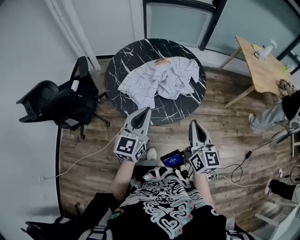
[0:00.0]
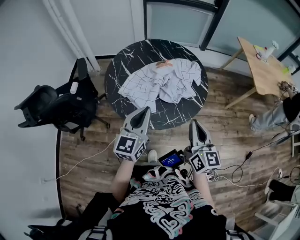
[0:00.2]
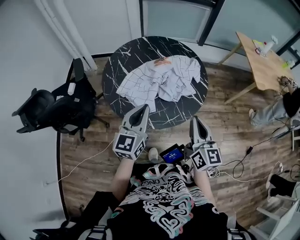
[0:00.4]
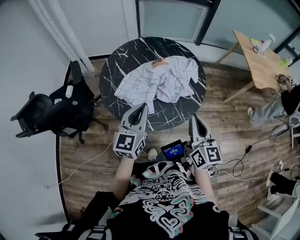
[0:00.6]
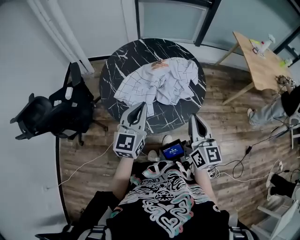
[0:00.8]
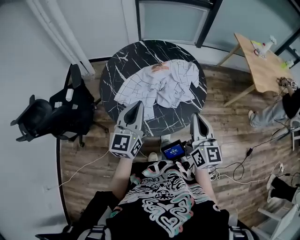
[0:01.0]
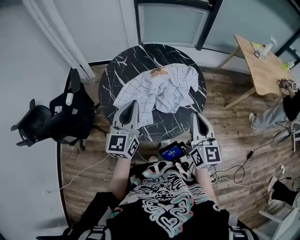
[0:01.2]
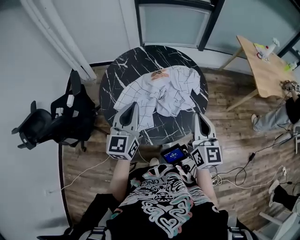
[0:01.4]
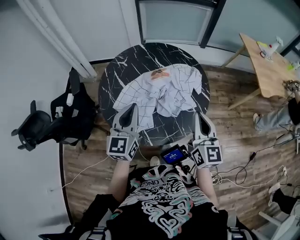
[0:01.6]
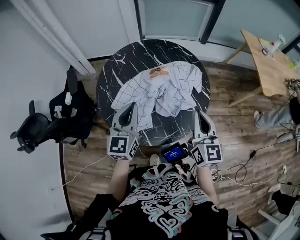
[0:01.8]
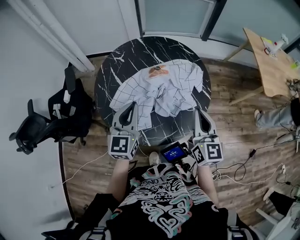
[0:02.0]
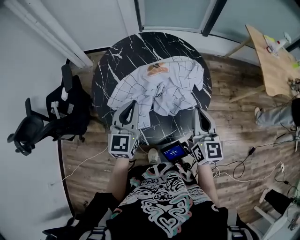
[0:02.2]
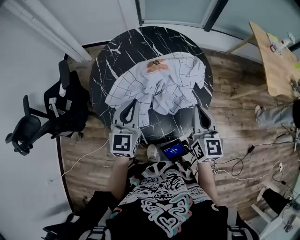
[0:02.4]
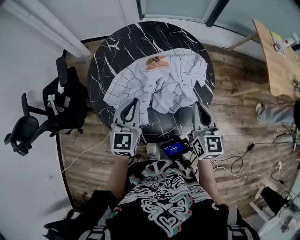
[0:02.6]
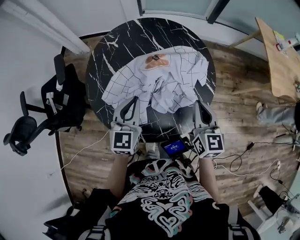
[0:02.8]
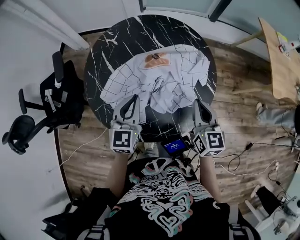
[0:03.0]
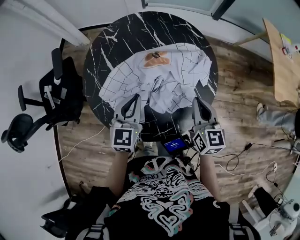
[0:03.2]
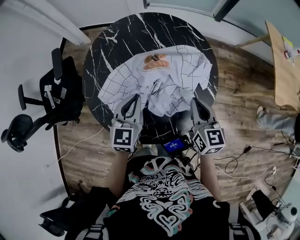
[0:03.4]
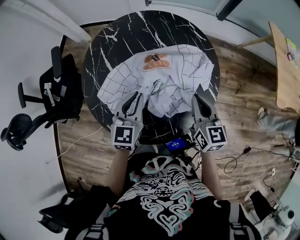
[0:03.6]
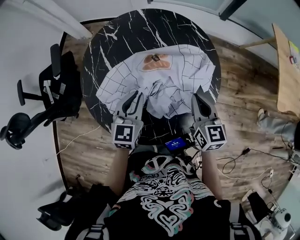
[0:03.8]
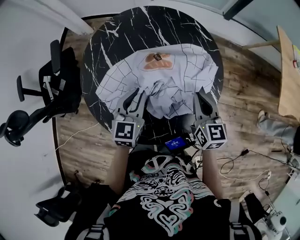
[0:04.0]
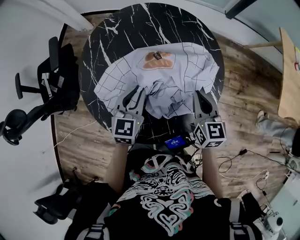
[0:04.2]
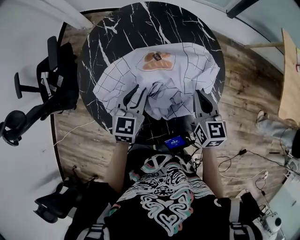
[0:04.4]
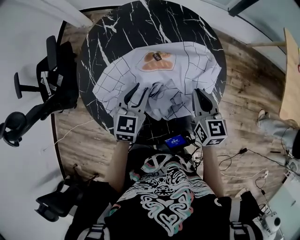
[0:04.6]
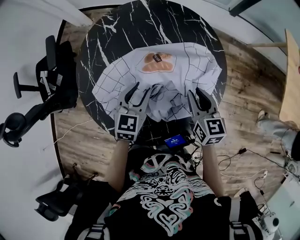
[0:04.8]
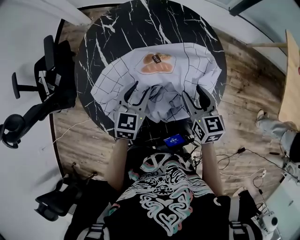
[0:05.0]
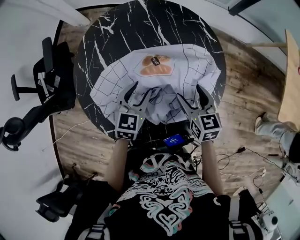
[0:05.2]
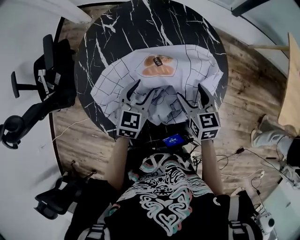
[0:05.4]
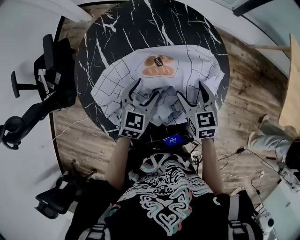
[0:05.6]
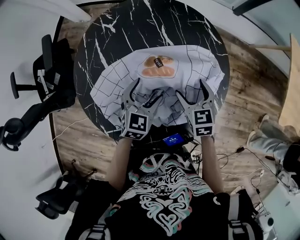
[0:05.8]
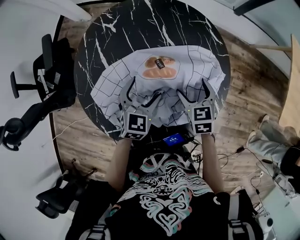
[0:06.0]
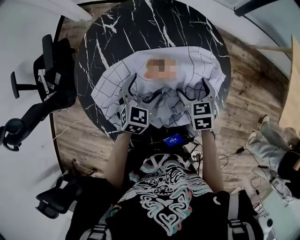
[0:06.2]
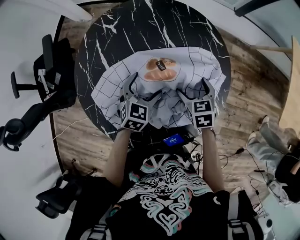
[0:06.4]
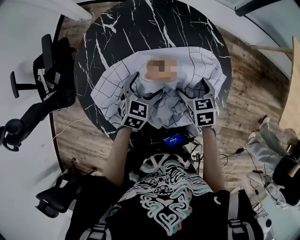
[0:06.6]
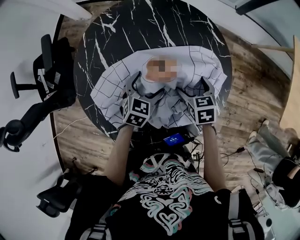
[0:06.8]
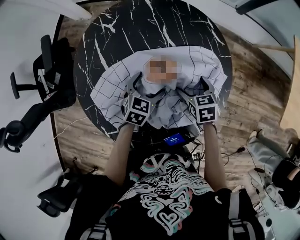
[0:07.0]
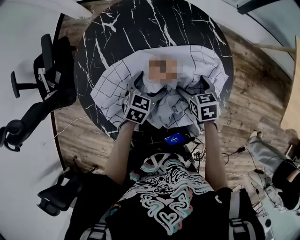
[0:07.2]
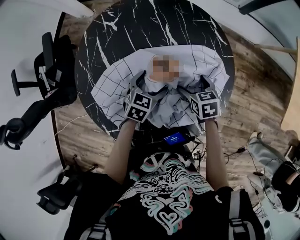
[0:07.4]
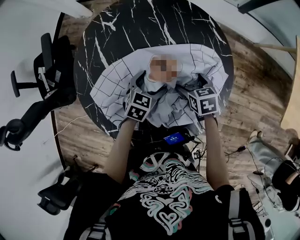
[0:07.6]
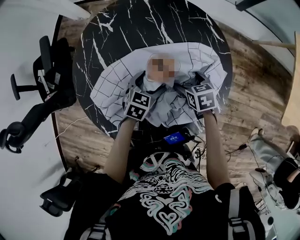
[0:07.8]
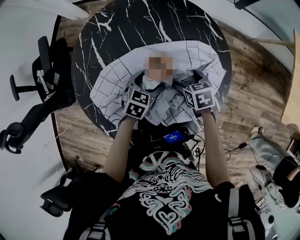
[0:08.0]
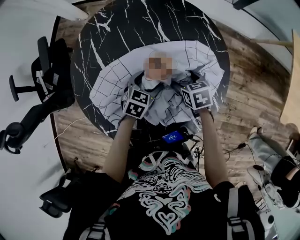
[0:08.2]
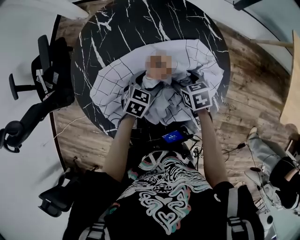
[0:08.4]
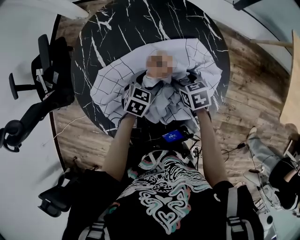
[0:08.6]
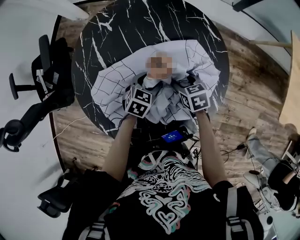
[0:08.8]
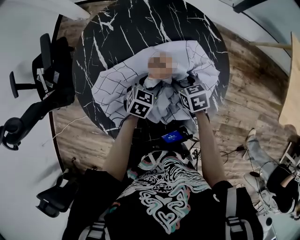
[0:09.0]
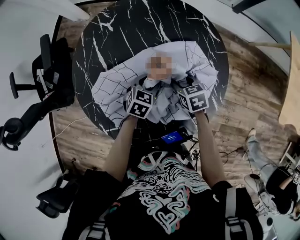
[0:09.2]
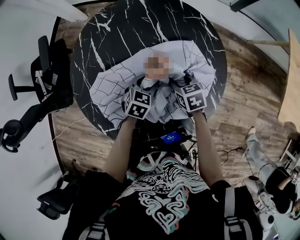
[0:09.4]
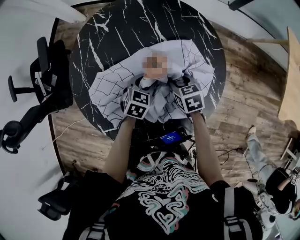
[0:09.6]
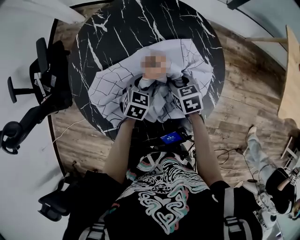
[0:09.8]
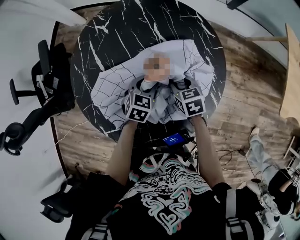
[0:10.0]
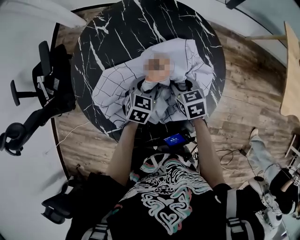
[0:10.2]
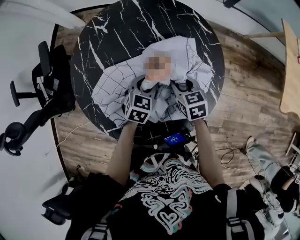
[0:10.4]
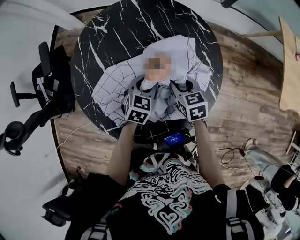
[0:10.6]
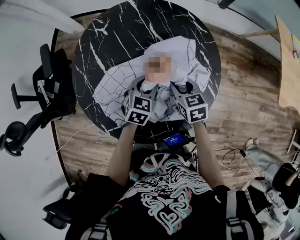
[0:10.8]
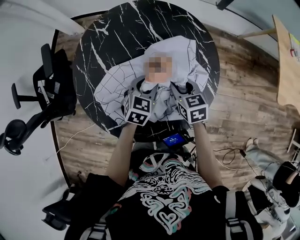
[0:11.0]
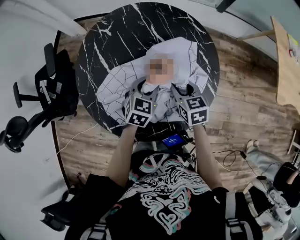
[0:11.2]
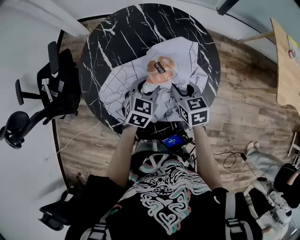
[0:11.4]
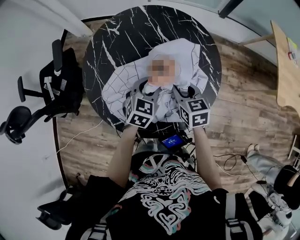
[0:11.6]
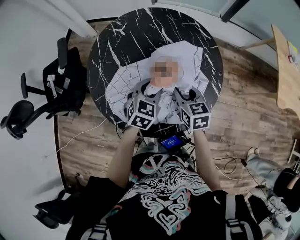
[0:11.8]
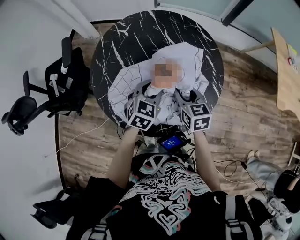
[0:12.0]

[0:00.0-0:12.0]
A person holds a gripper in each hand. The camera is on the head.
0:00.0 to 0:01.6: Both grippers move forward, roughly 15 cm.
0:01.6 to 0:03.0: The right gripper is displaced forward and downward by roughly 15 cm. The left gripper is displaced downward and forward by about 15 cm.
0:03.0 to 0:04.4: The right gripper moves forward and downward, approximately 10 cm, while the left gripper moves downward and forward, roughly 10 cm.
0:04.4 to 0:06.0: The left gripper shifts by roughly 5 cm, and opens up. Meanwhile the right gripper moves downward and forward, about 10 cm, swivels roughly 20 degrees, and opens.
0:06.0 to 0:07.6: The grippers both shift downward by approximately 10 cm. The right gripper turns by about 20 degrees.
0:07.6 to 0:09.0: The right gripper closes up, while the left gripper closes up.
0:09.0 to 0:10.4: The right gripper moves roughly 5 cm.
0:10.4 to 0:12.0: The two grippers go about 15 cm upward and backward.

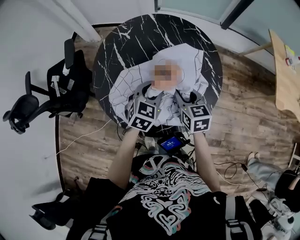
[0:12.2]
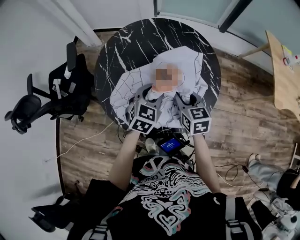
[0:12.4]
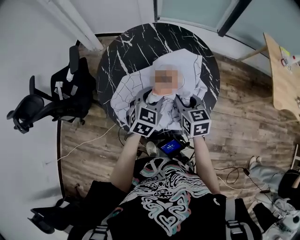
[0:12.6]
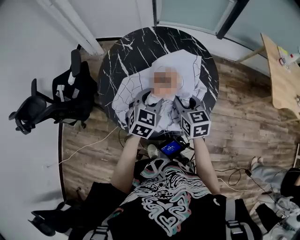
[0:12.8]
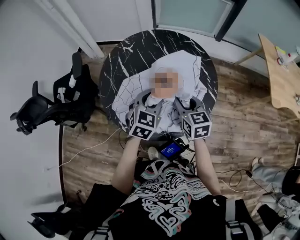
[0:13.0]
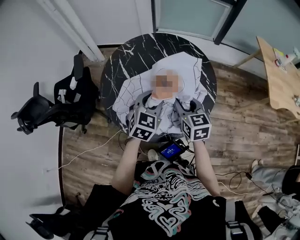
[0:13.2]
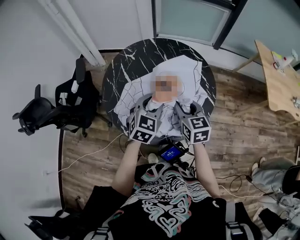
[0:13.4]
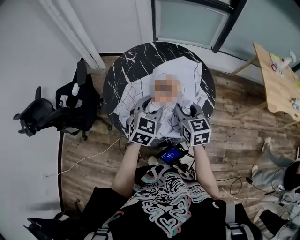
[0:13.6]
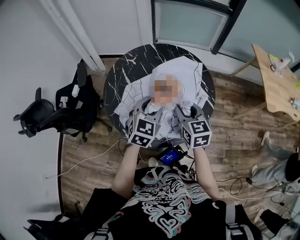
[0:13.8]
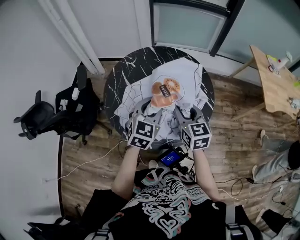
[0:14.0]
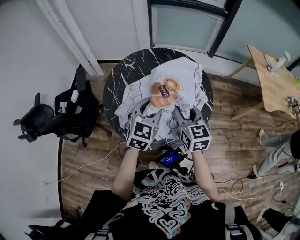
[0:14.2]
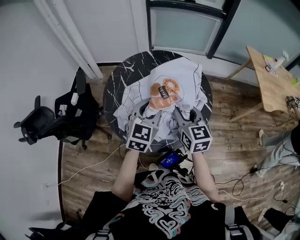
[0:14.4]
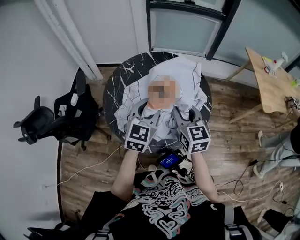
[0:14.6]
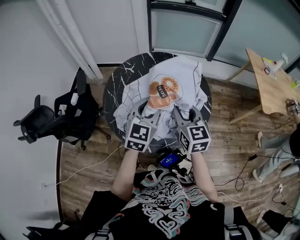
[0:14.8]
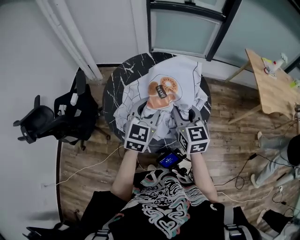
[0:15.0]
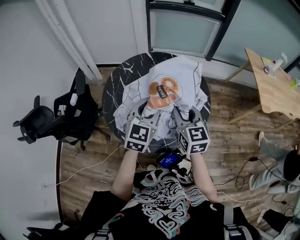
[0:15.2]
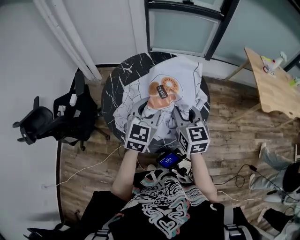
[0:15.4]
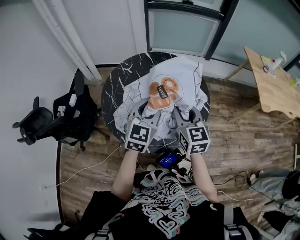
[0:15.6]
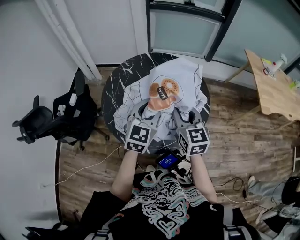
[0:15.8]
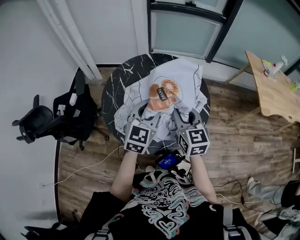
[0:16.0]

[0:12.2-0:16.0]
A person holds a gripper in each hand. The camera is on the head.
0:12.2 to 0:13.4: The two grippers go approximately 10 cm upward.
0:13.4 to 0:14.8: Both grippers move upward, about 10 cm.
0:14.8 to 0:16.0: Both grippers stay about where they are.

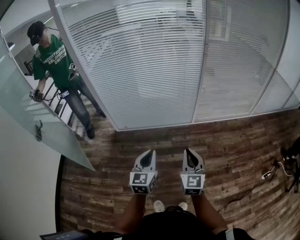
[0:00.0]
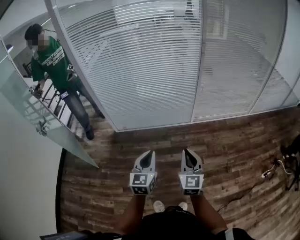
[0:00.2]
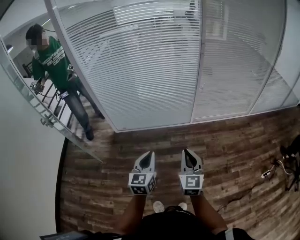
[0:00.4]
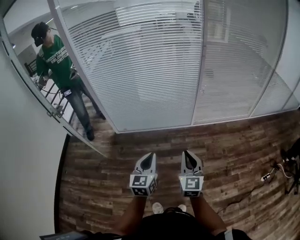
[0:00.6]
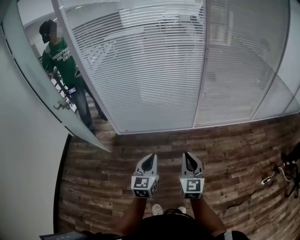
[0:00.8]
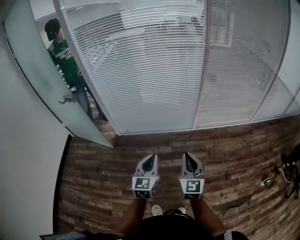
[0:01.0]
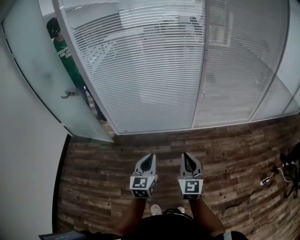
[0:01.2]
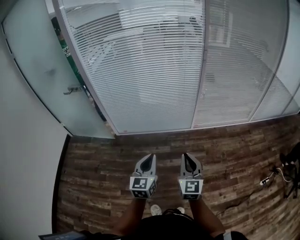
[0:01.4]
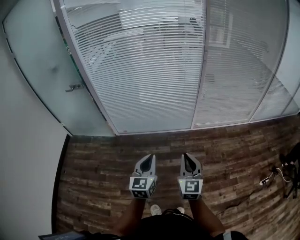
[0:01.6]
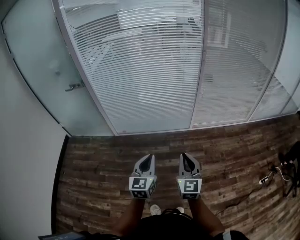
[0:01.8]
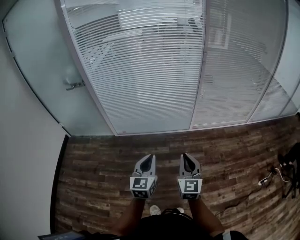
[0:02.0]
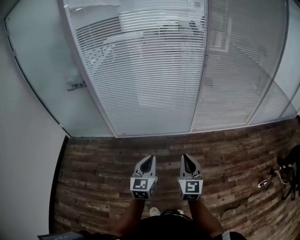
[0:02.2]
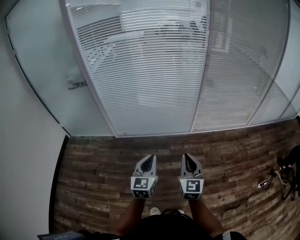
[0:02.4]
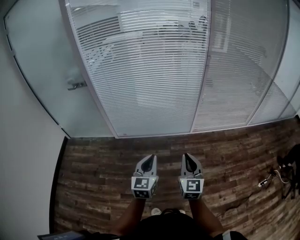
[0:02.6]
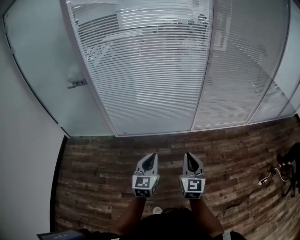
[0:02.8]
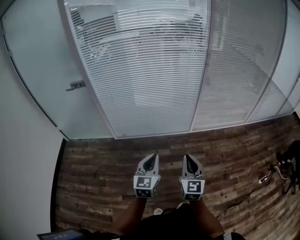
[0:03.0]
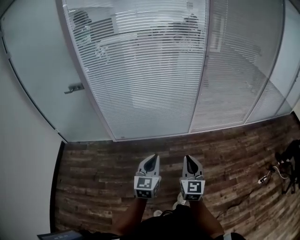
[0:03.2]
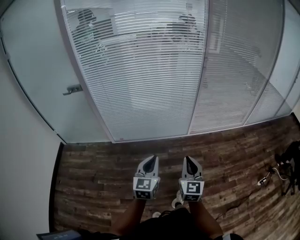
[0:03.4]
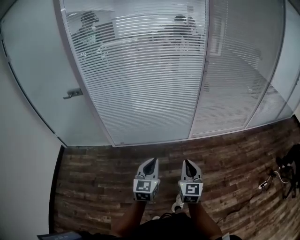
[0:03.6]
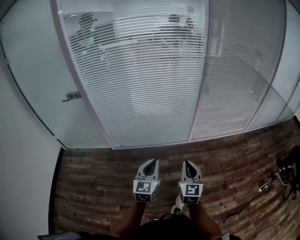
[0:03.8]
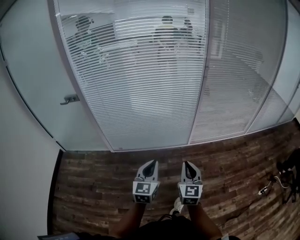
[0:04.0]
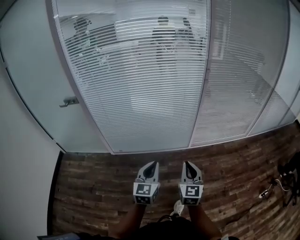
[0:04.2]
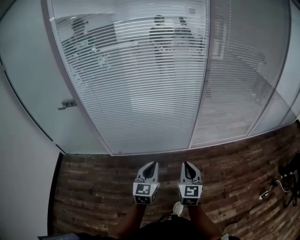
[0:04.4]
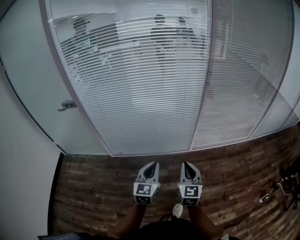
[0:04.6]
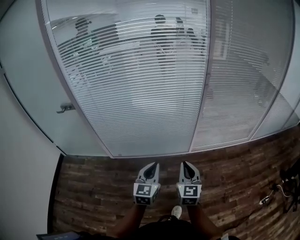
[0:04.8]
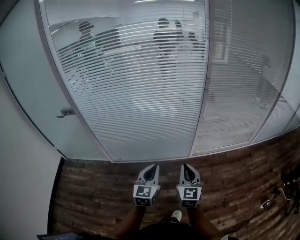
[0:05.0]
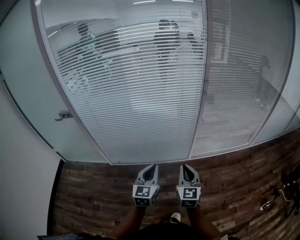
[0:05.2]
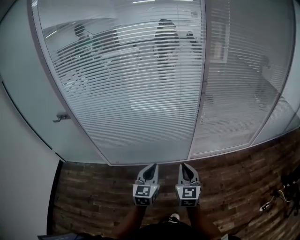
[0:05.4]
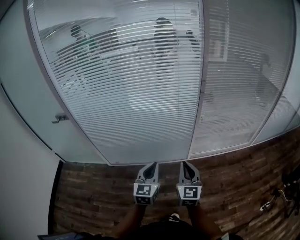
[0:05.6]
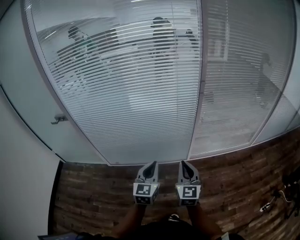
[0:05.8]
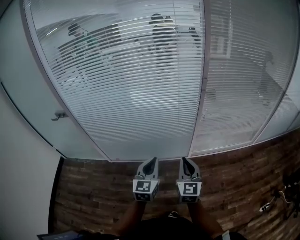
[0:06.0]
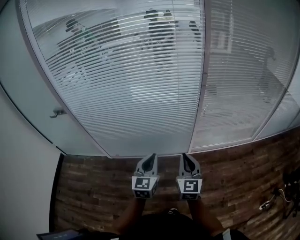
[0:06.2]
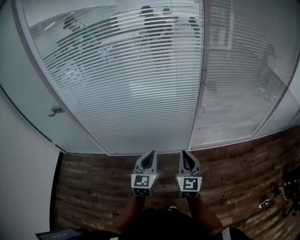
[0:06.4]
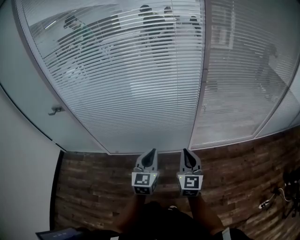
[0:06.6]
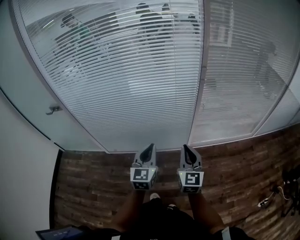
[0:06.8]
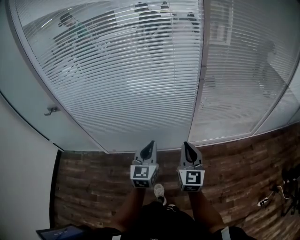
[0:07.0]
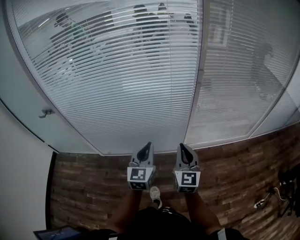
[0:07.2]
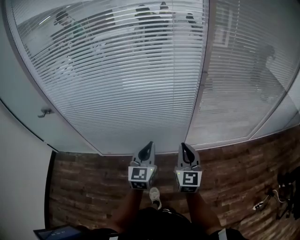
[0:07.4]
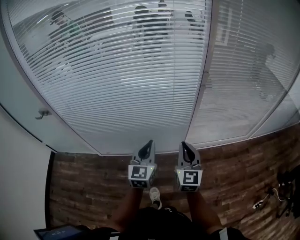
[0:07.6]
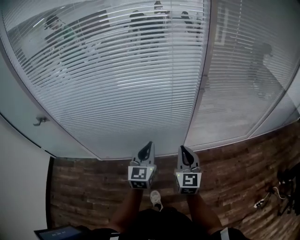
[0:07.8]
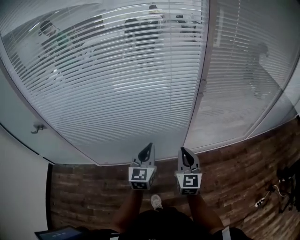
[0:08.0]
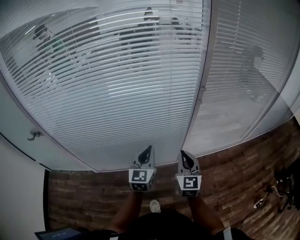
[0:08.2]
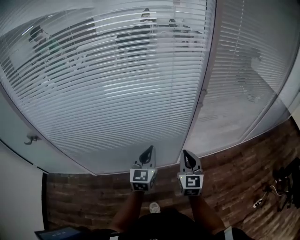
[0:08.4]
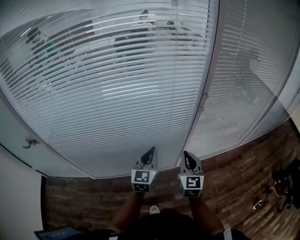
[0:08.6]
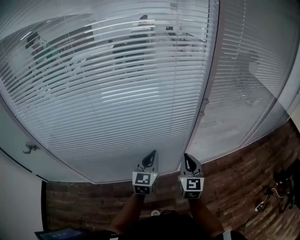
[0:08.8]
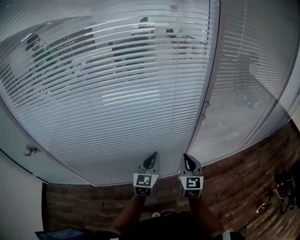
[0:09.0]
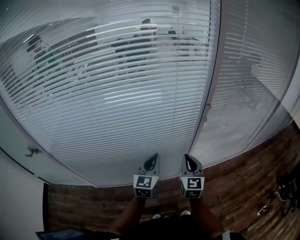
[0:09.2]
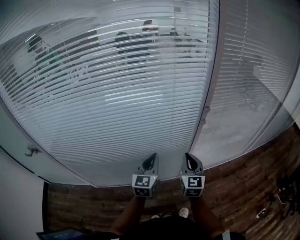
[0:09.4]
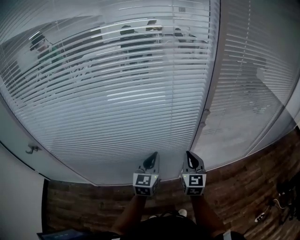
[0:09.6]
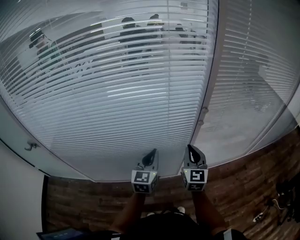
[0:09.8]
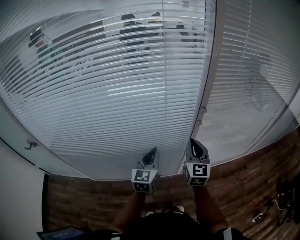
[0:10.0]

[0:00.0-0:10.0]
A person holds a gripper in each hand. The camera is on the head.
0:00.0 to 0:01.4: The grippers stay close to where they were, moving slightly.
0:01.4 to 0:02.8: The left gripper is displaced to the left by some 5 cm.
0:02.8 to 0:04.2: Both grippers move forward, approximately 10 cm.
0:04.2 to 0:05.8: The two grippers go some 15 cm forward and to the right.
0:05.8 to 0:07.2: The two grippers go some 10 cm forward.
0:07.2 to 0:08.6: The grippers both shift forward by about 15 cm.
0:08.6 to 0:10.0: The left gripper travels forward by some 10 cm. Meanwhile the right gripper heads forward and to the right, covering some 15 cm.